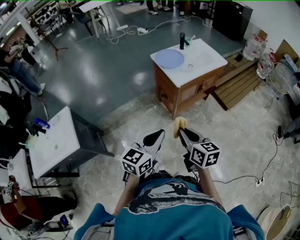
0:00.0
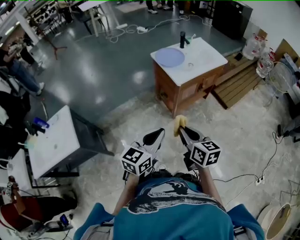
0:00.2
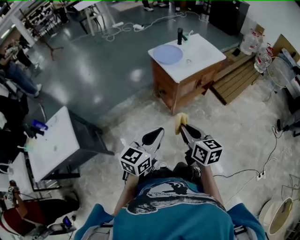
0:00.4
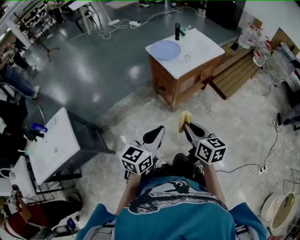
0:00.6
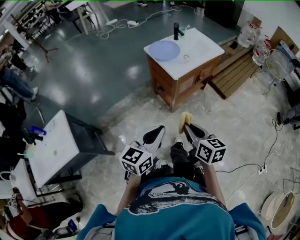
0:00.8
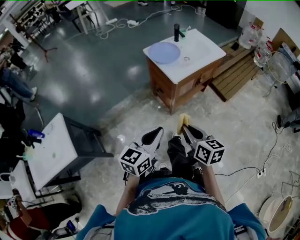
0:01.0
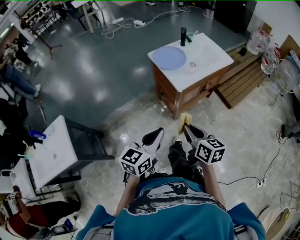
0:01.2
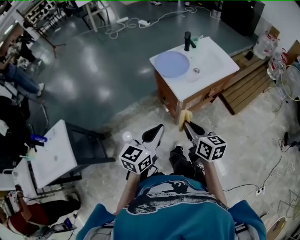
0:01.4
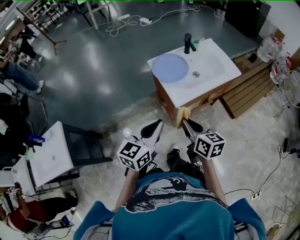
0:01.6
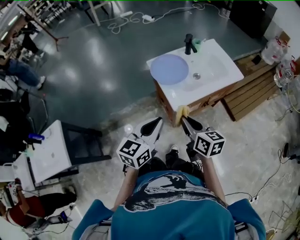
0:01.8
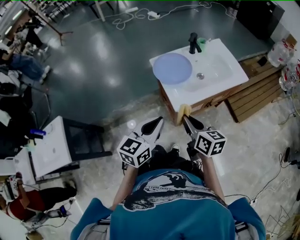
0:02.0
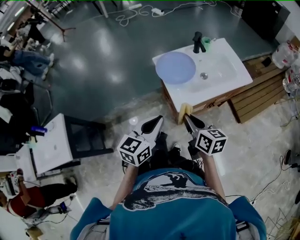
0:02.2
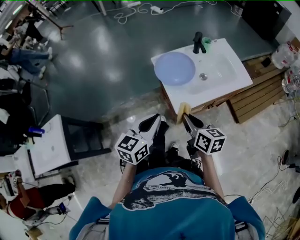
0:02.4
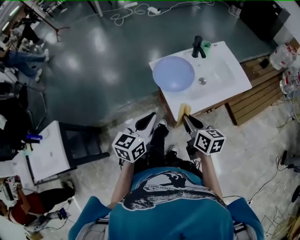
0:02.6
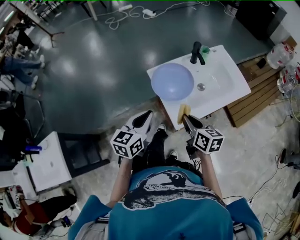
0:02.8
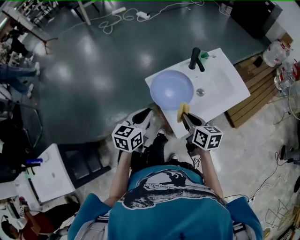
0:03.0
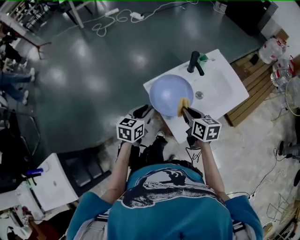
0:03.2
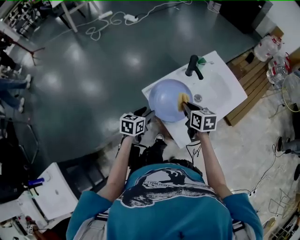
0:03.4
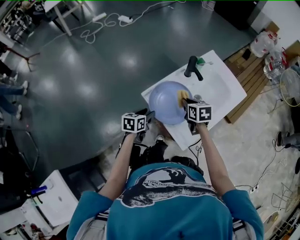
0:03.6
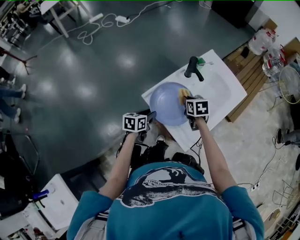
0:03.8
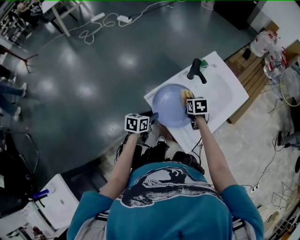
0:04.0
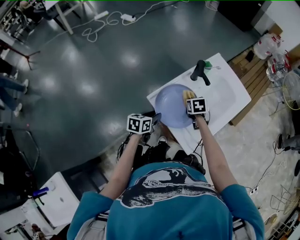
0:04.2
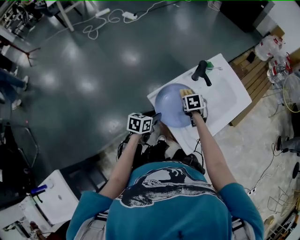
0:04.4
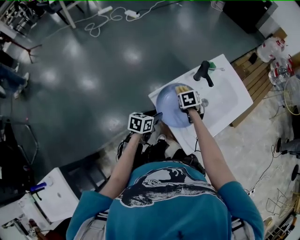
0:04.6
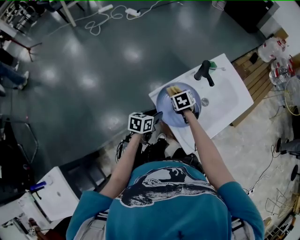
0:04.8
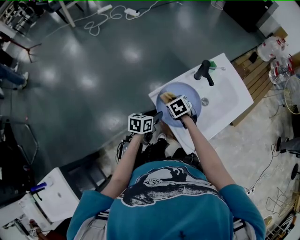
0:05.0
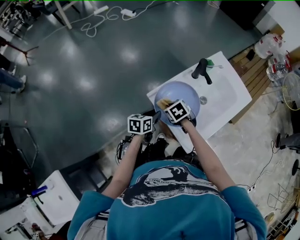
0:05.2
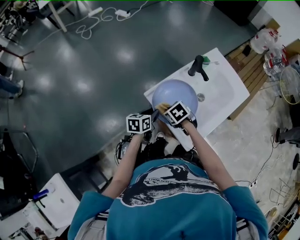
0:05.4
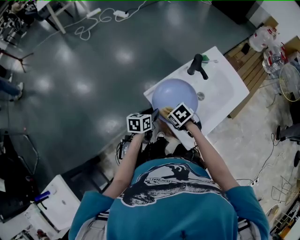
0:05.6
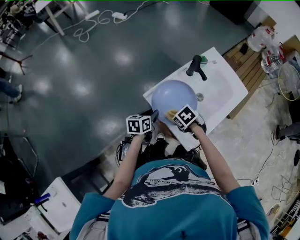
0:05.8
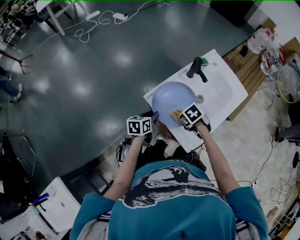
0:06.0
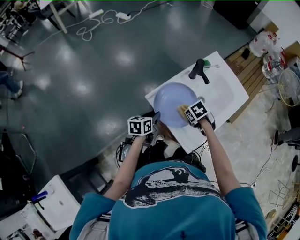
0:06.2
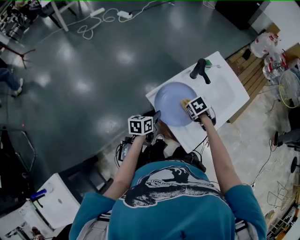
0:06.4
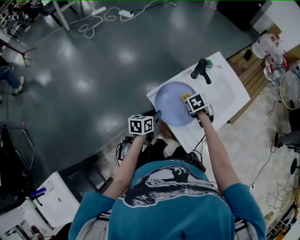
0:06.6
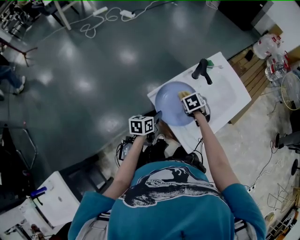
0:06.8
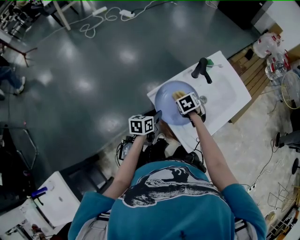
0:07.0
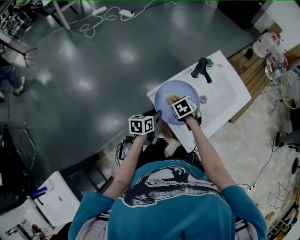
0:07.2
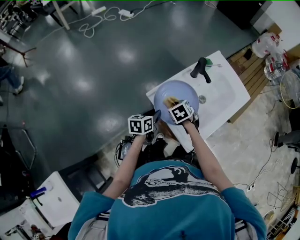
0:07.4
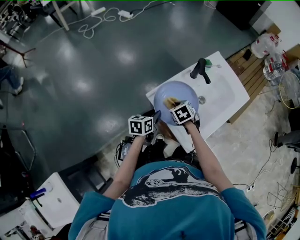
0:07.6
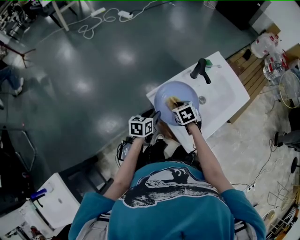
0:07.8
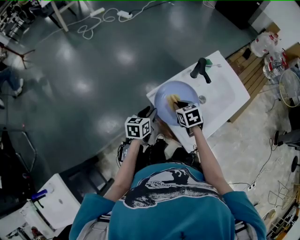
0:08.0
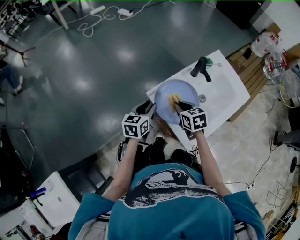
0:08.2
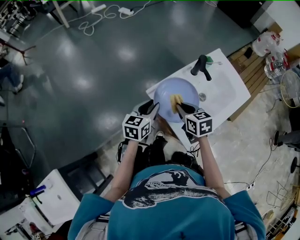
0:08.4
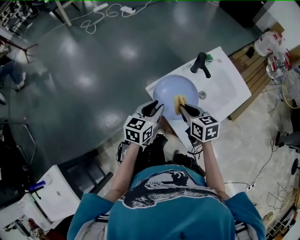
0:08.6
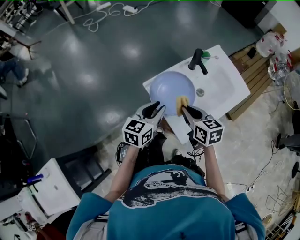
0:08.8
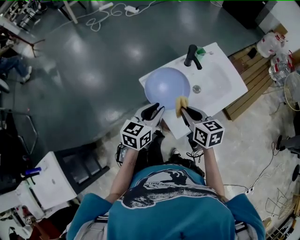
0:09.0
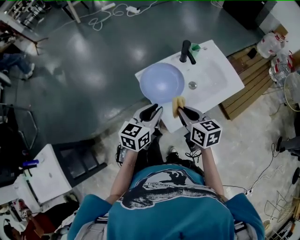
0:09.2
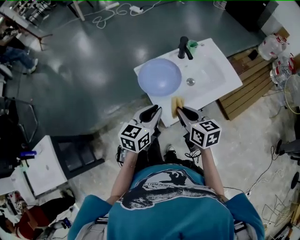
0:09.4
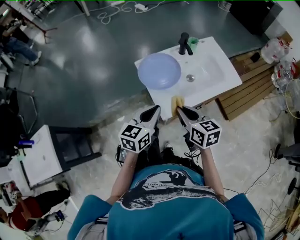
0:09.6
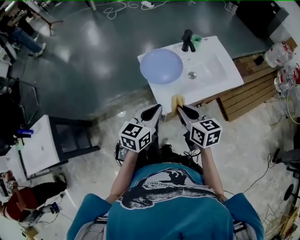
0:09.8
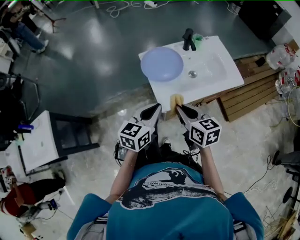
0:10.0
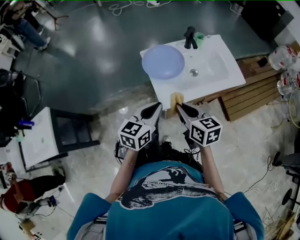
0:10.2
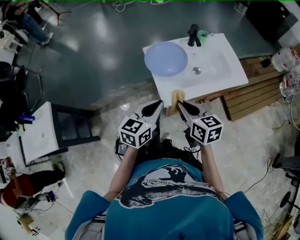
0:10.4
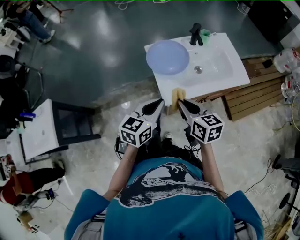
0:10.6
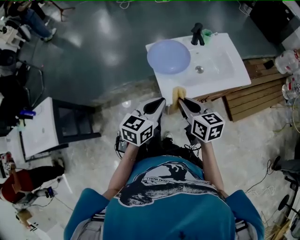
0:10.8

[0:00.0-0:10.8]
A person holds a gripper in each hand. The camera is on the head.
0:00.0 to 0:01.6: Both grippers travel together forward, about 25 cm.
0:01.6 to 0:03.0: The grippers both shift forward by approximately 25 cm.
0:03.0 to 0:04.6: The left gripper heads downward, covering about 15 cm, swivels approximately 30 degrees, and opens up. The right gripper moves roughly 25 cm, and tilts its fingers approximately 40 degrees downward.
0:04.6 to 0:06.2: The right gripper ends up approximately 10 cm from where it was, and changes its angle by roughly 20 degrees.
0:06.2 to 0:07.8: The right gripper moves about 10 cm.
0:07.8 to 0:09.2: The left gripper goes some 25 cm upward, backward and to the right, and rotates some 20 degrees, while the right gripper shifts some 25 cm backward, upward and to the right, and tilts its fingers some 30 degrees upward.
0:09.2 to 0:10.8: Both grippers travel together backward, about 10 cm.

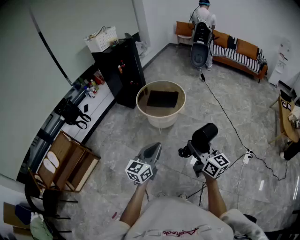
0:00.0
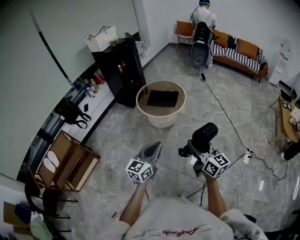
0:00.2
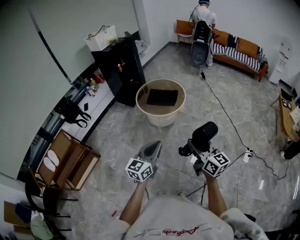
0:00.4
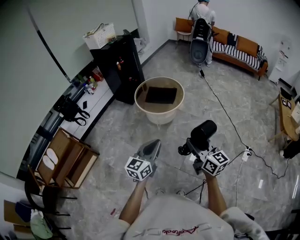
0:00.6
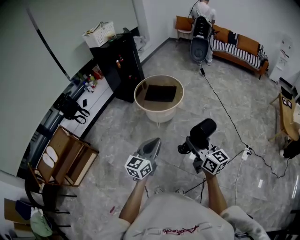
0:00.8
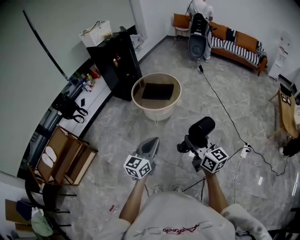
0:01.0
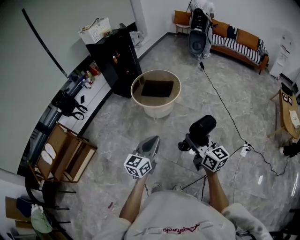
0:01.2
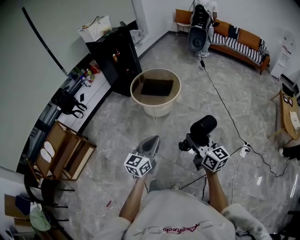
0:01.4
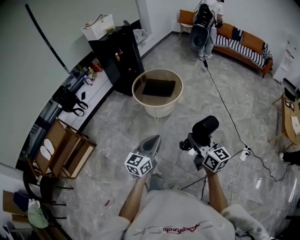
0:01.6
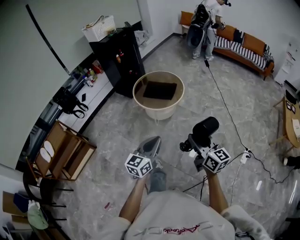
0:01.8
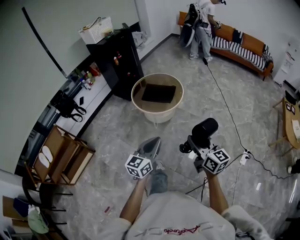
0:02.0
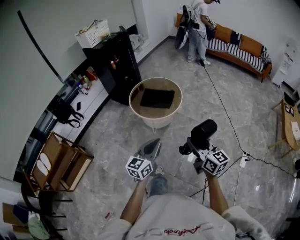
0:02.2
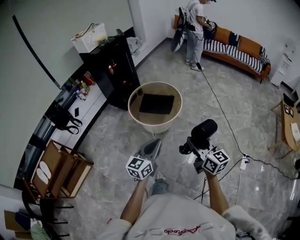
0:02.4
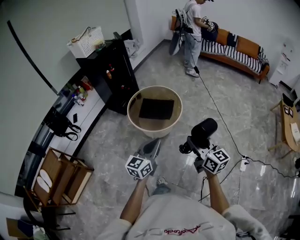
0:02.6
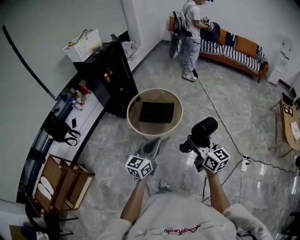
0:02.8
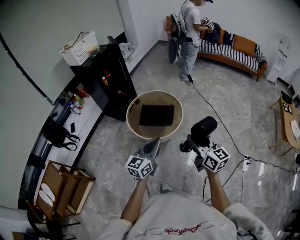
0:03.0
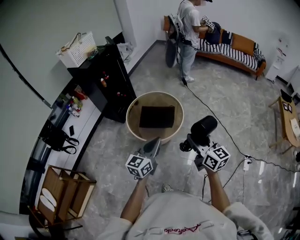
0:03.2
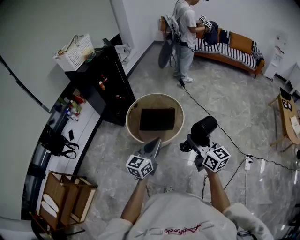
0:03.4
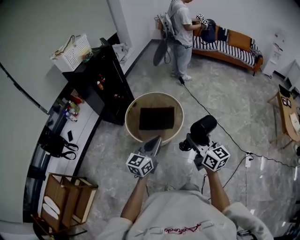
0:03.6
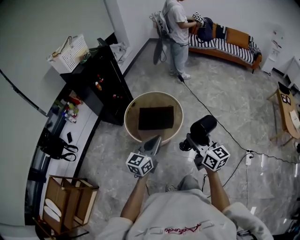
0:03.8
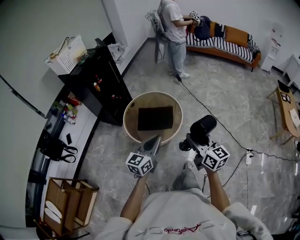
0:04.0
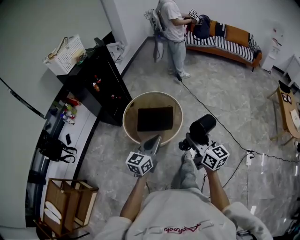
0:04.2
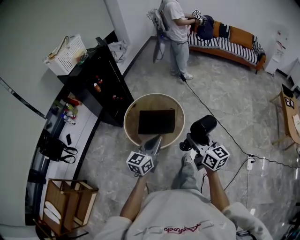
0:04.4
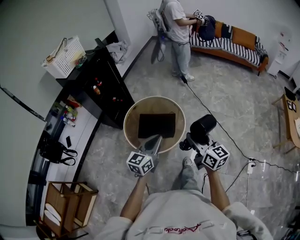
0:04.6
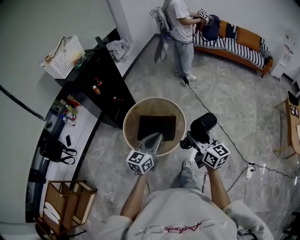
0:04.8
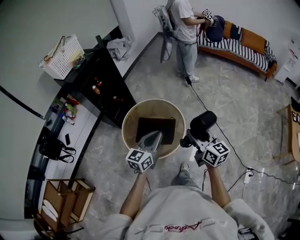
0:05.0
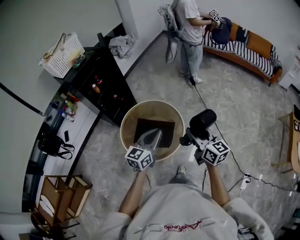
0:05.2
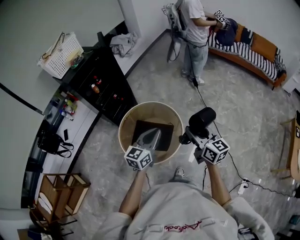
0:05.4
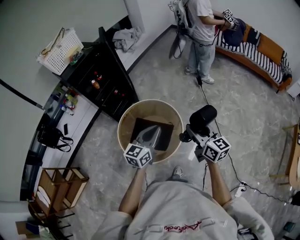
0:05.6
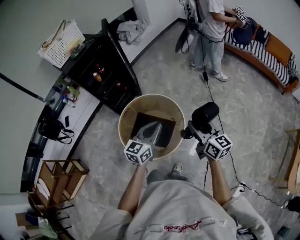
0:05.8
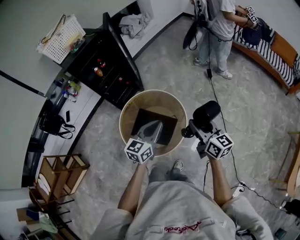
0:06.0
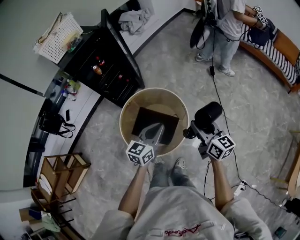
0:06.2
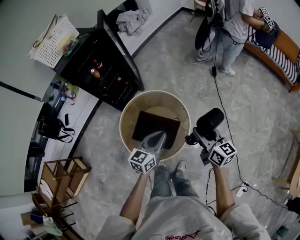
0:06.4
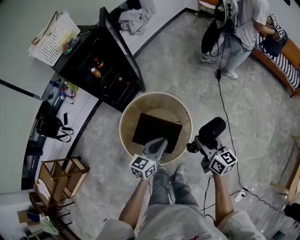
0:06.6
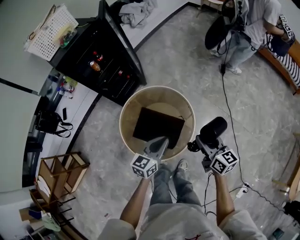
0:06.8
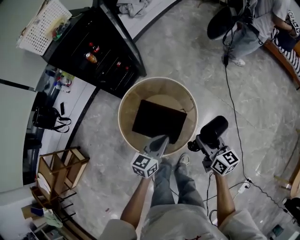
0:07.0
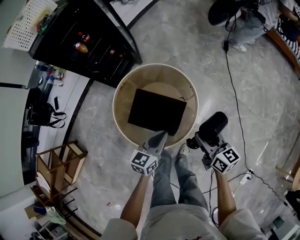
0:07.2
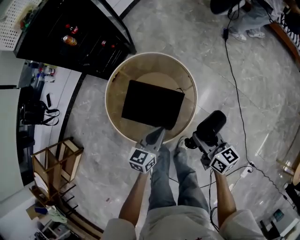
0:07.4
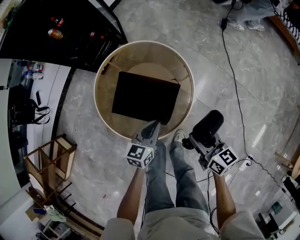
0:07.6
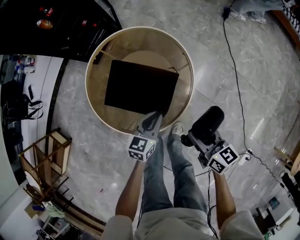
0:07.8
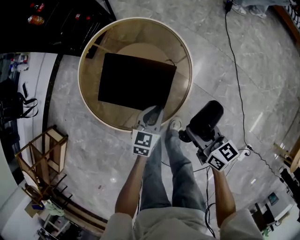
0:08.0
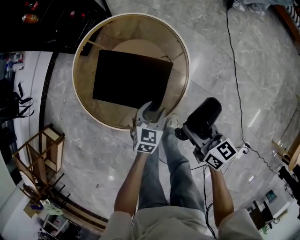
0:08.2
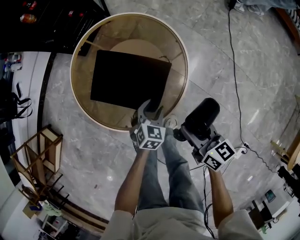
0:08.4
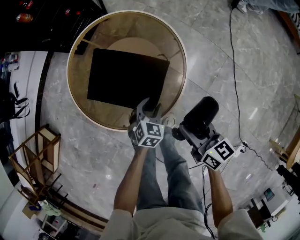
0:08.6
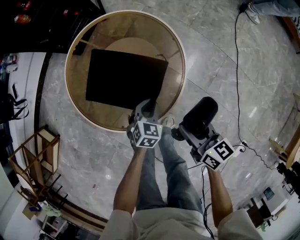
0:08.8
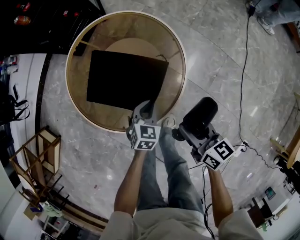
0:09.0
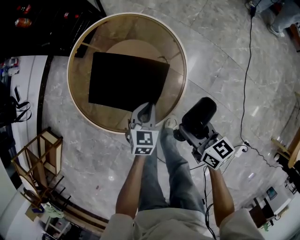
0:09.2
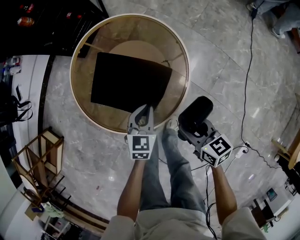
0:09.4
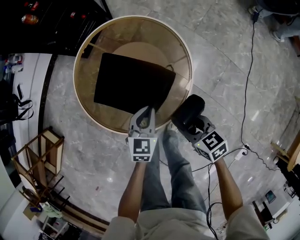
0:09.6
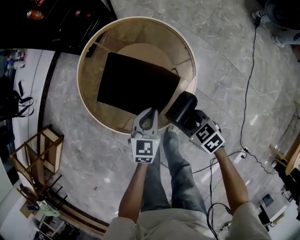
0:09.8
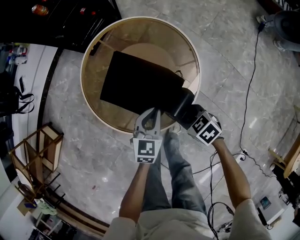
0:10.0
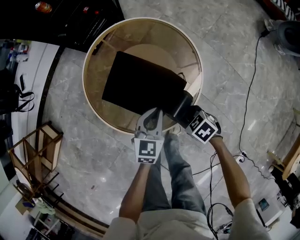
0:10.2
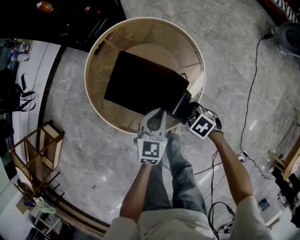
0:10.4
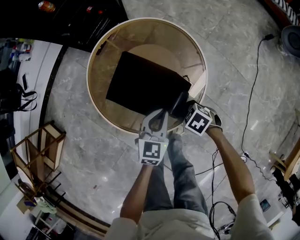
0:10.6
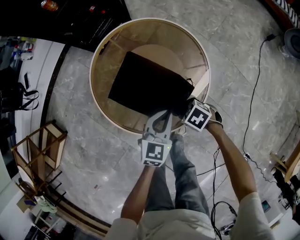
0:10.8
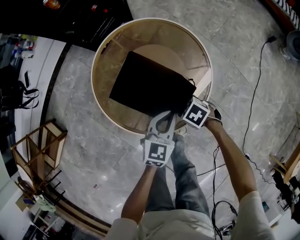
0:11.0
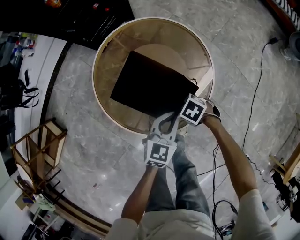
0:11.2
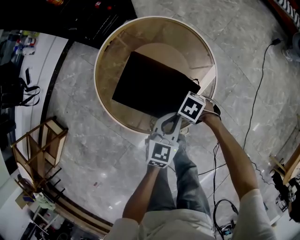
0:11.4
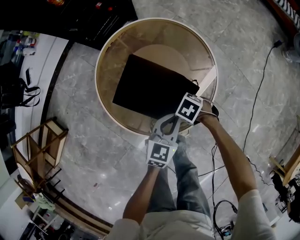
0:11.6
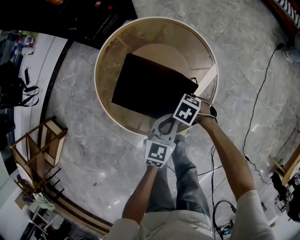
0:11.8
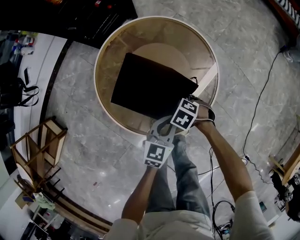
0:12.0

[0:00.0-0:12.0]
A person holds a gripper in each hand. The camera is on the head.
0:00.0 to 0:01.6: Both grippers travel together to the right, about 10 cm.
0:01.6 to 0:03.0: The grippers both shift forward by about 30 cm.
0:03.0 to 0:04.4: Both grippers travel together forward, some 15 cm.
0:04.4 to 0:06.0: The grippers both shift forward by some 35 cm.
0:06.0 to 0:07.6: Both grippers move downward, approximately 30 cm. The right gripper swivels roughly 20 degrees.
0:07.6 to 0:09.0: The right gripper is displaced downward by approximately 10 cm, while the left gripper is displaced downward by approximately 15 cm, rotates some 30 degrees, and opens, then closes once more.
0:09.0 to 0:10.4: The left gripper is displaced upward by approximately 10 cm, while the right gripper heads downward, covering approximately 10 cm, and tilts its fingers some 40 degrees downward.
0:10.4 to 0:12.0: The right gripper moves about 10 cm.

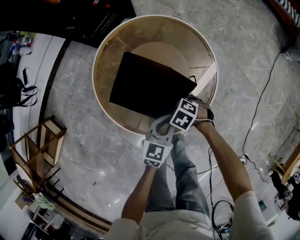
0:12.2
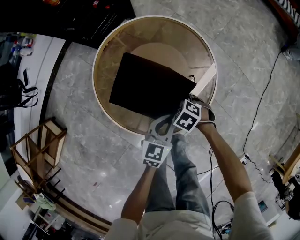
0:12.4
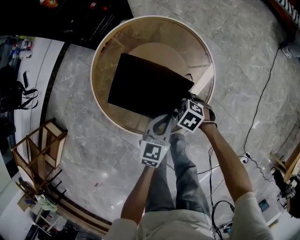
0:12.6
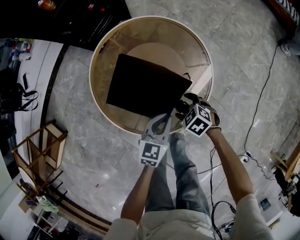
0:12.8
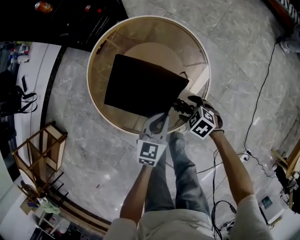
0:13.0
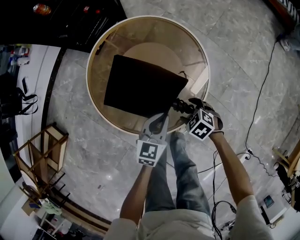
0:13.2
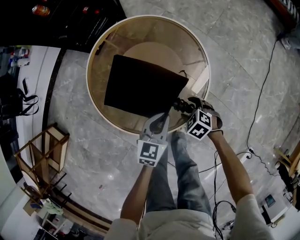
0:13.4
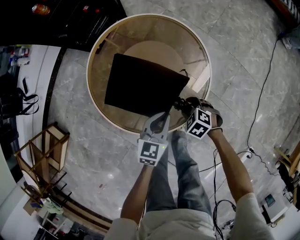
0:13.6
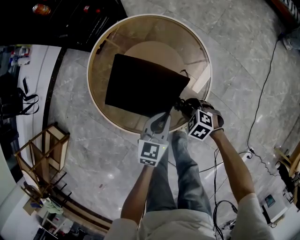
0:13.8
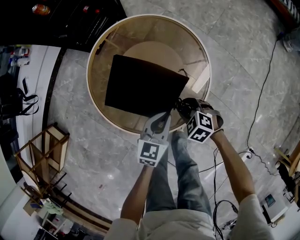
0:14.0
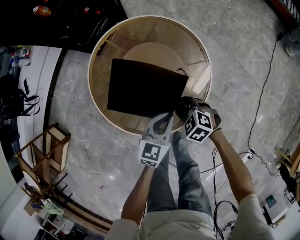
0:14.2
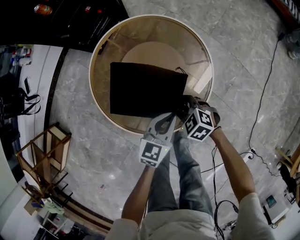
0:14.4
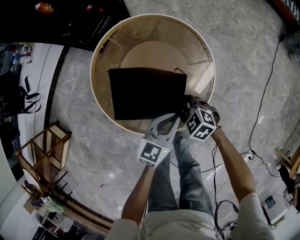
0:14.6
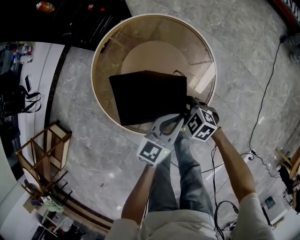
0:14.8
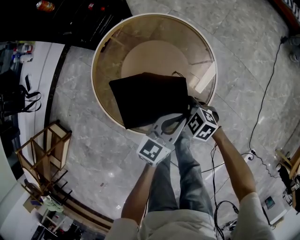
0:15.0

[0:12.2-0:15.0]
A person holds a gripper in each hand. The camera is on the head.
0:12.2 to 0:13.6: The right gripper moves roughly 10 cm, and opens, then closes again.
0:13.6 to 0:15.0: The left gripper heads upward, covering roughly 5 cm, and turns by about 20 degrees; the right gripper moves to the left and upward, roughly 10 cm, and swivels some 20 degrees.
